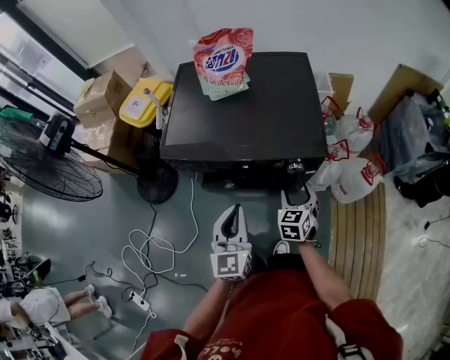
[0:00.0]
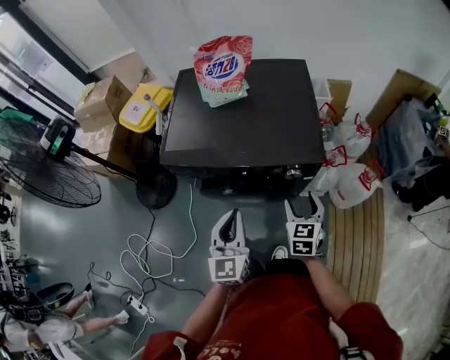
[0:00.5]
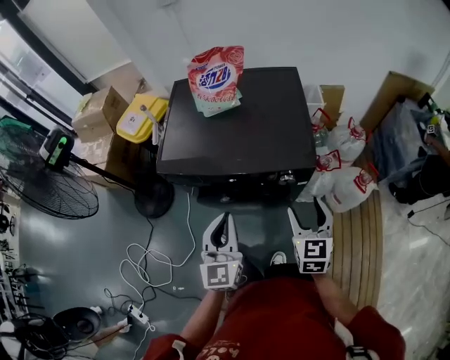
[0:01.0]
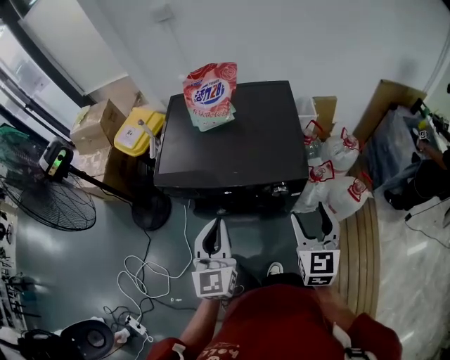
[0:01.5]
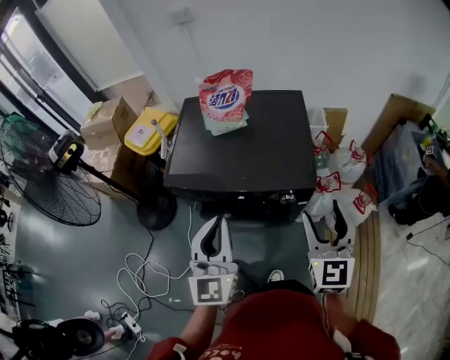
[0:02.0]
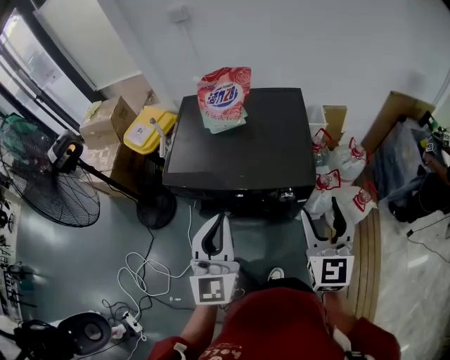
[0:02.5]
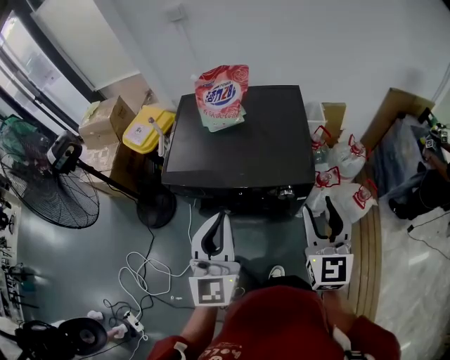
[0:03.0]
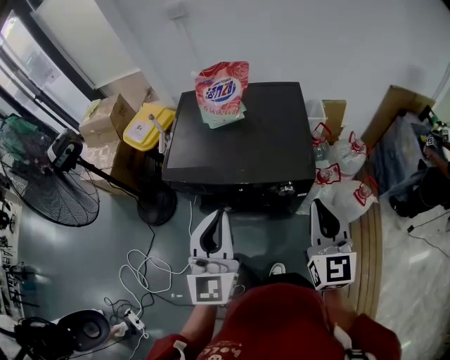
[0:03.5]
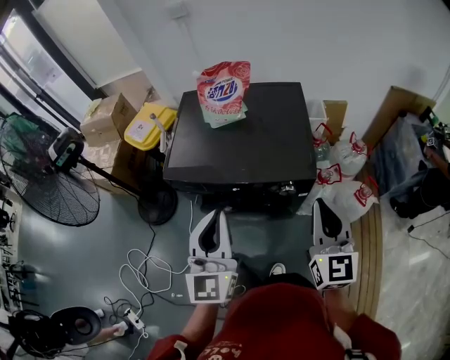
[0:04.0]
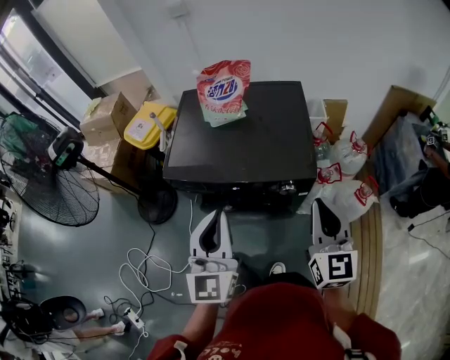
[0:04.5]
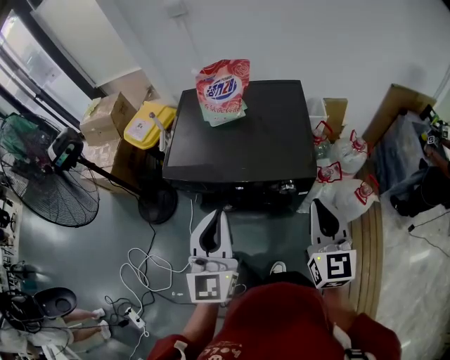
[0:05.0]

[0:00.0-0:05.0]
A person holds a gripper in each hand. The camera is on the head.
0:00.0 to 0:02.5: The left gripper travels upward by some 15 cm, while the right gripper goes approximately 30 cm upward, and swivels roughly 30 degrees.
0:02.5 to 0:05.0: The right gripper closes up.

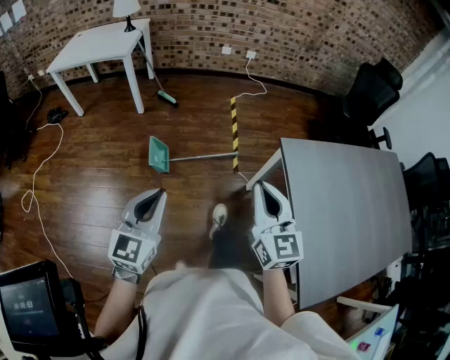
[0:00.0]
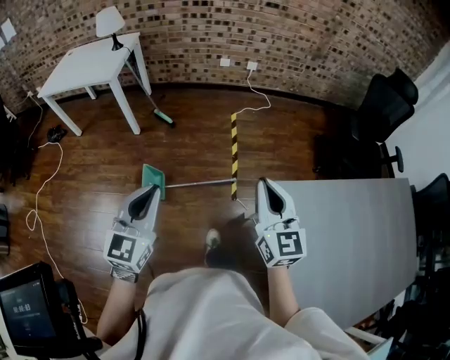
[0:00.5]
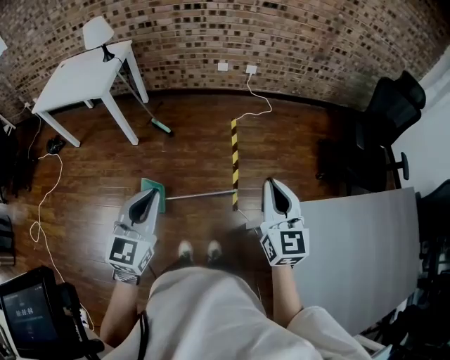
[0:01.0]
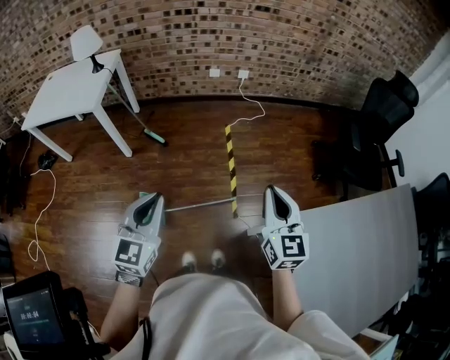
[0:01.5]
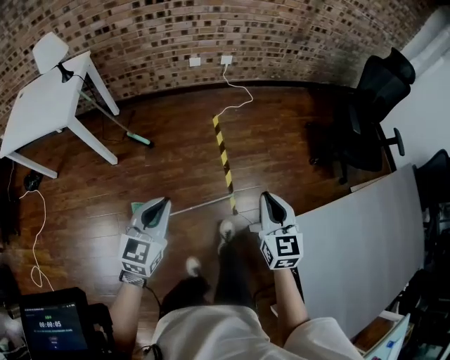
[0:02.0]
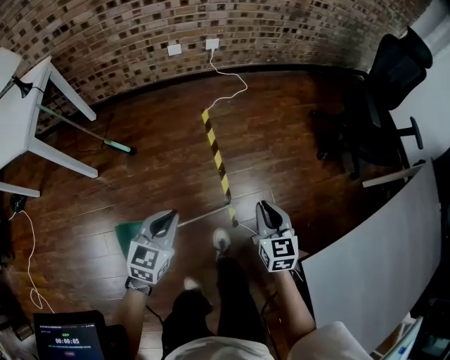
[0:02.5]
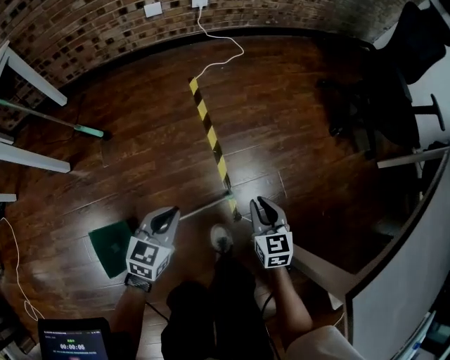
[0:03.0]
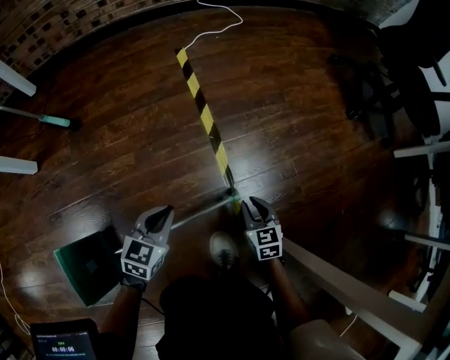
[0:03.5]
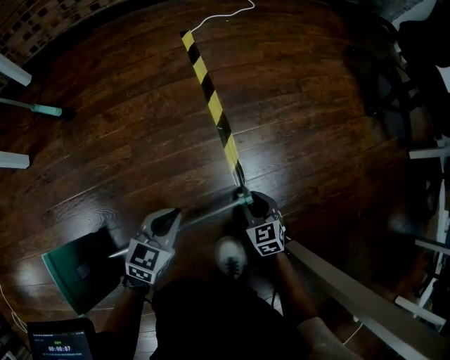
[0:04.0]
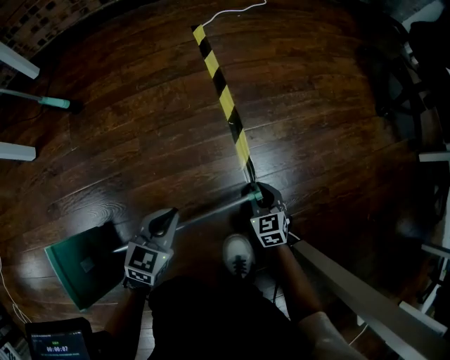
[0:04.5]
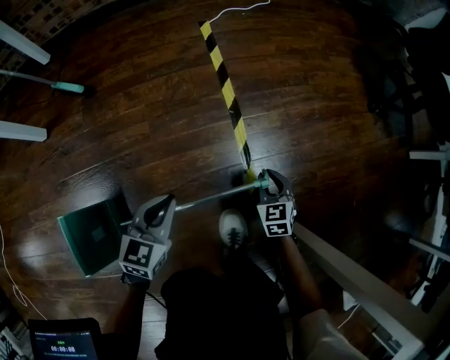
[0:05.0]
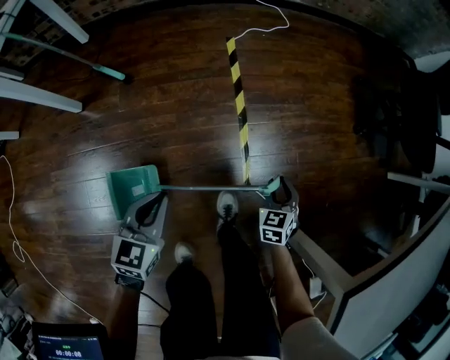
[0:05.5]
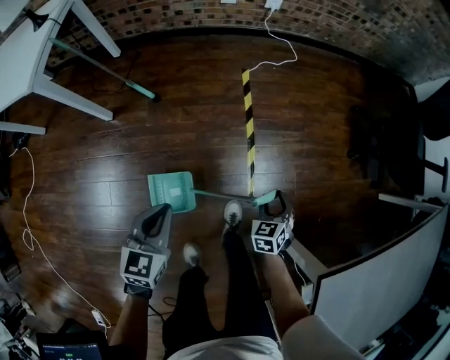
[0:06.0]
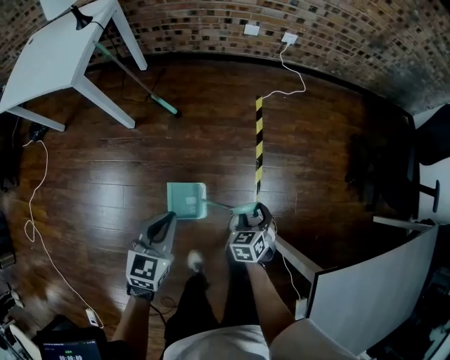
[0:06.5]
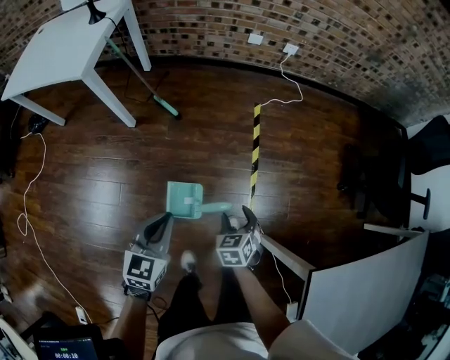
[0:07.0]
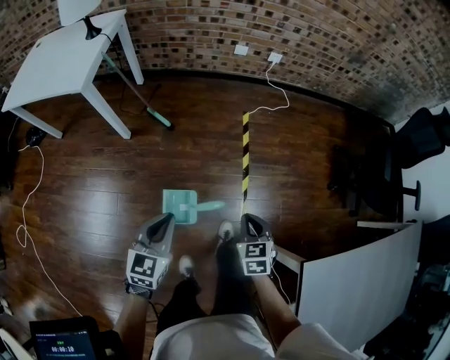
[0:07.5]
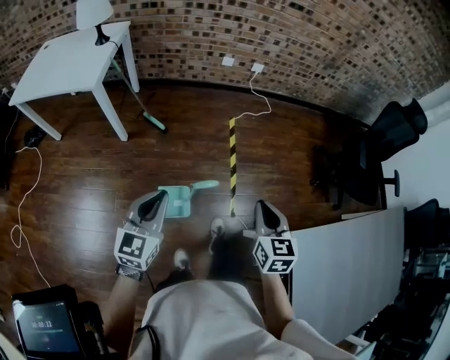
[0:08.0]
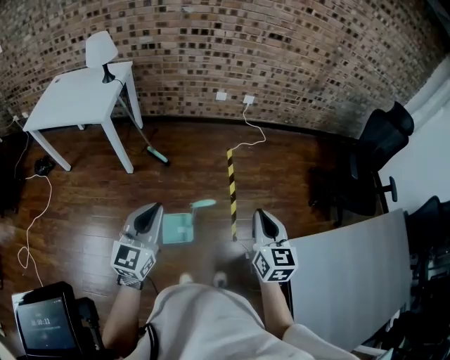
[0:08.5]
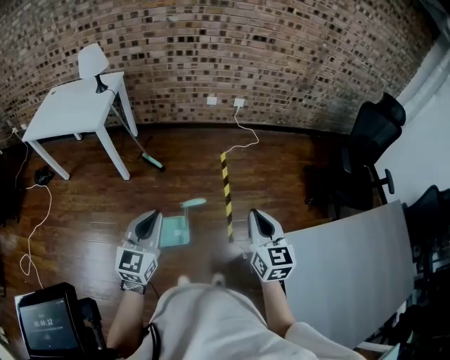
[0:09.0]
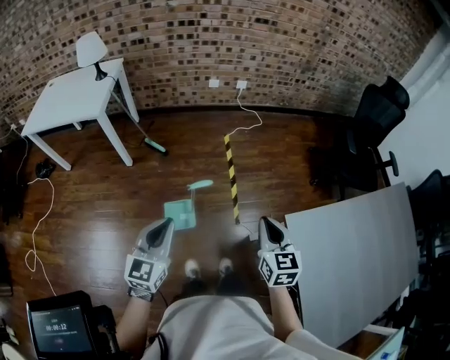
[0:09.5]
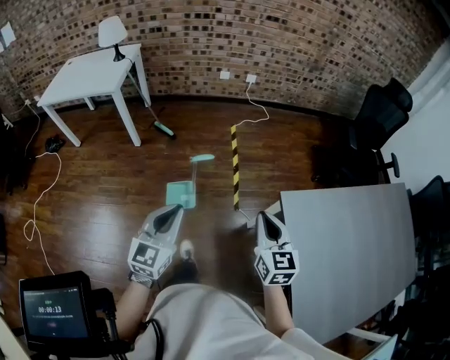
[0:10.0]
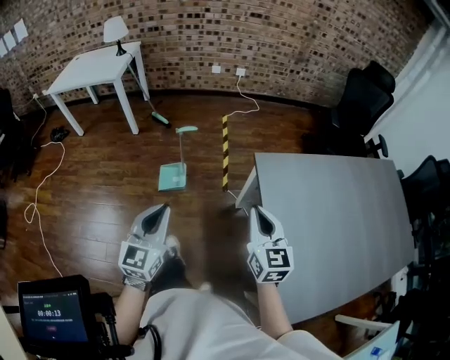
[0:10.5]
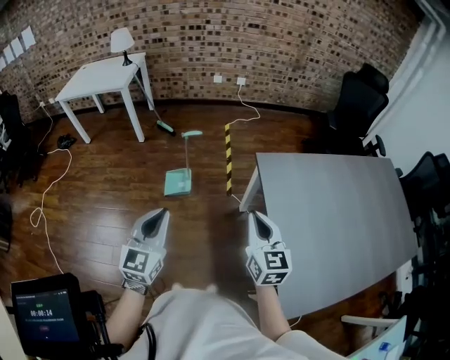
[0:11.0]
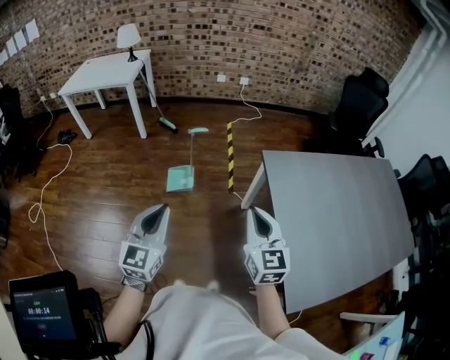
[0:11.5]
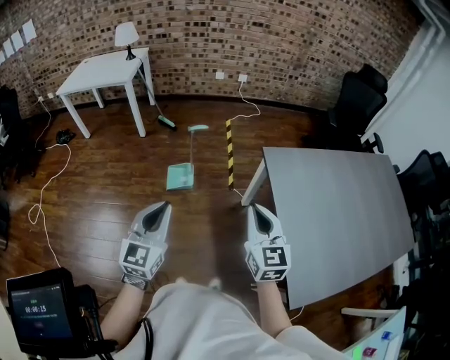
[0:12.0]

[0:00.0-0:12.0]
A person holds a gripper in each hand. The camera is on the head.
0:00.0 to 0:02.0: The two grippers travel together, forward, about 50 cm.
0:02.0 to 0:04.0: Both grippers travel together downward, approximately 80 cm. The left gripper rotates roughly 20 degrees; the right gripper changes its angle by some 30 degrees.
0:04.0 to 0:06.0: Both grippers move upward, roughly 50 cm. The left gripper turns by approximately 30 degrees.
0:06.0 to 0:08.0: The left gripper is displaced upward and backward by about 30 cm, and changes its angle by roughly 20 degrees; the right gripper is displaced upward by some 40 cm, swivels about 30 degrees, and closes up.
0:08.0 to 0:10.0: The right gripper moves backward, about 25 cm; the left gripper is displaced backward and to the right by about 25 cm.
0:10.0 to 0:12.0: The grippers both shift backward by approximately 30 cm.

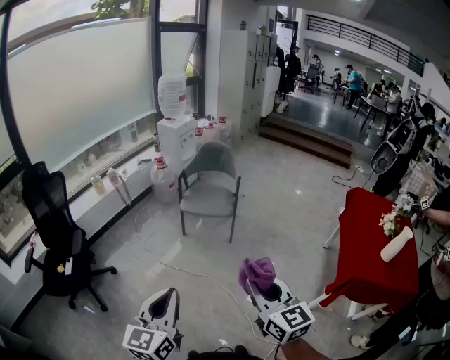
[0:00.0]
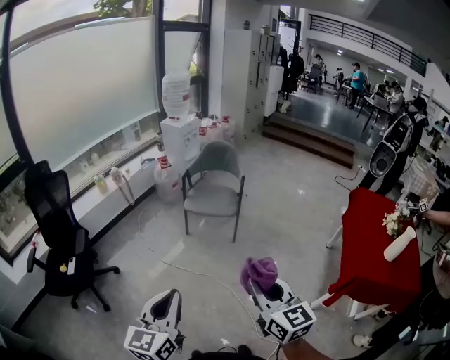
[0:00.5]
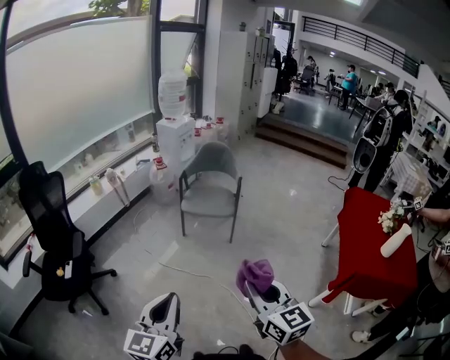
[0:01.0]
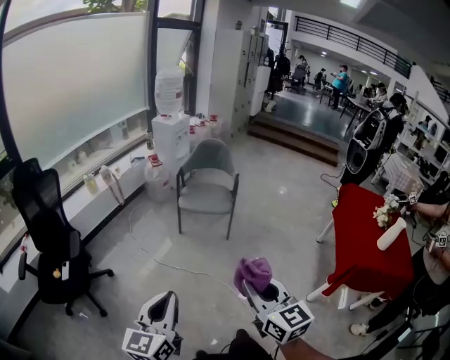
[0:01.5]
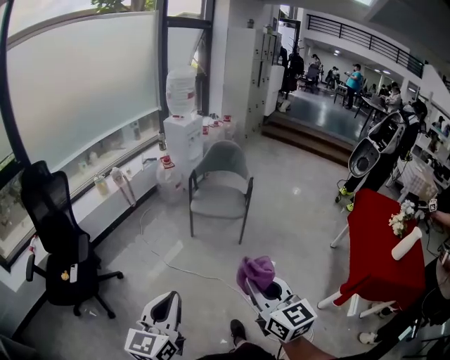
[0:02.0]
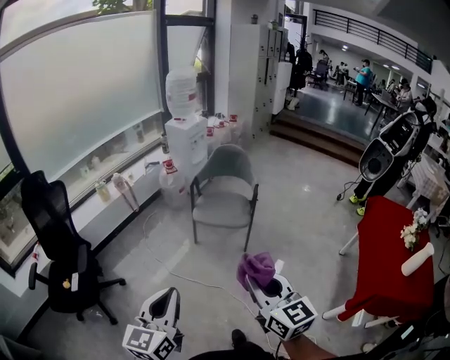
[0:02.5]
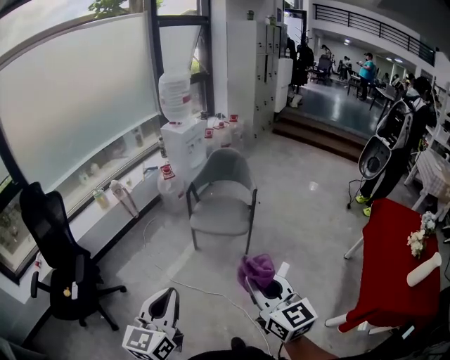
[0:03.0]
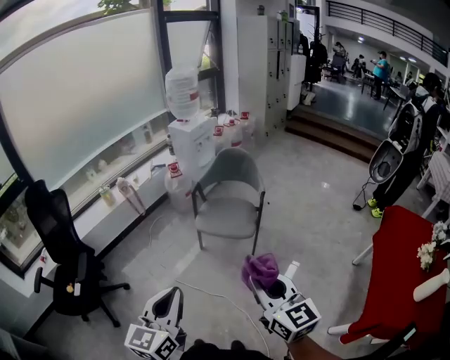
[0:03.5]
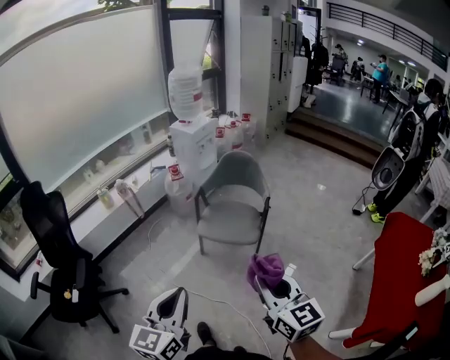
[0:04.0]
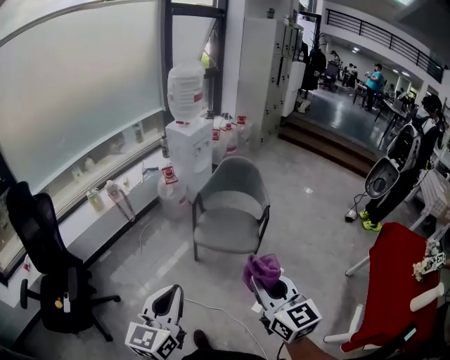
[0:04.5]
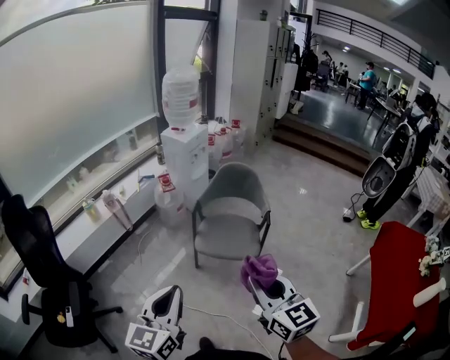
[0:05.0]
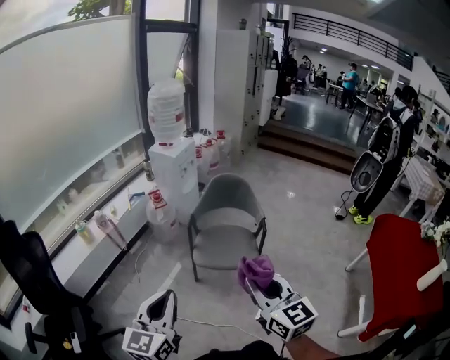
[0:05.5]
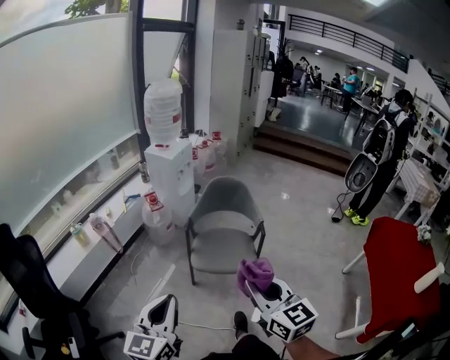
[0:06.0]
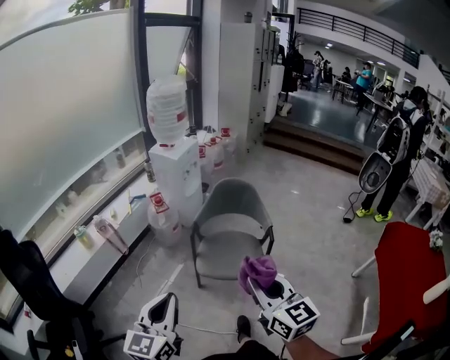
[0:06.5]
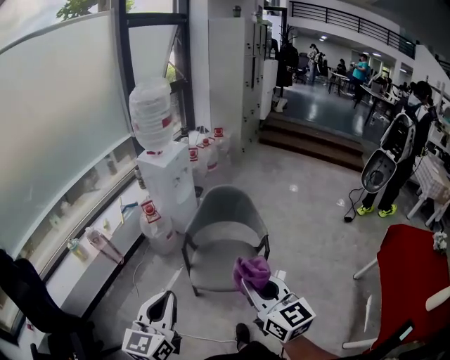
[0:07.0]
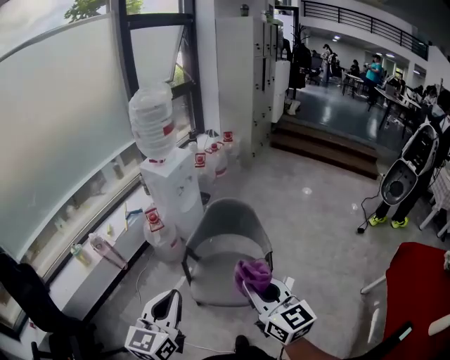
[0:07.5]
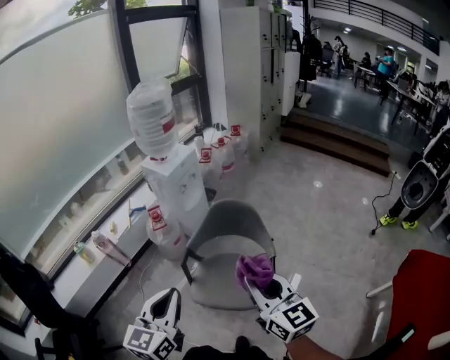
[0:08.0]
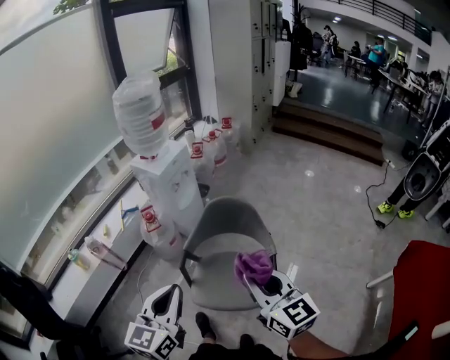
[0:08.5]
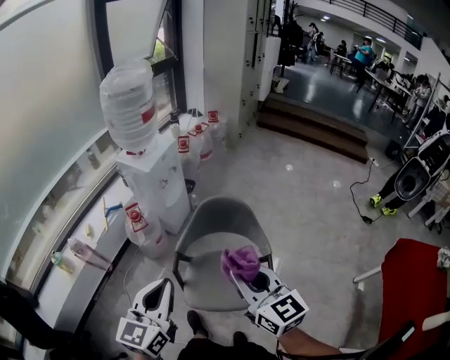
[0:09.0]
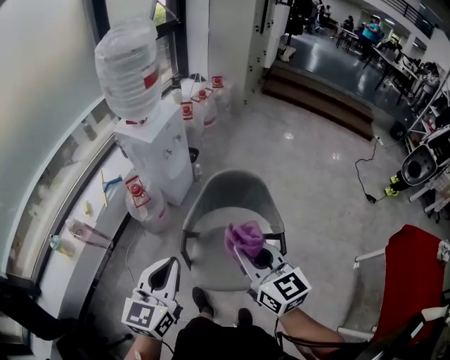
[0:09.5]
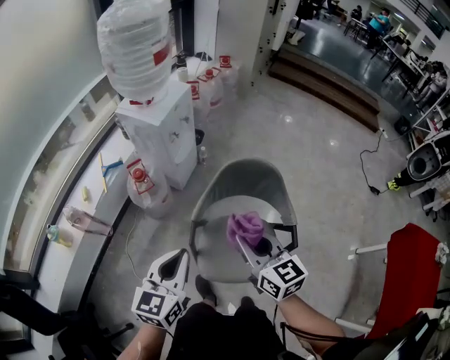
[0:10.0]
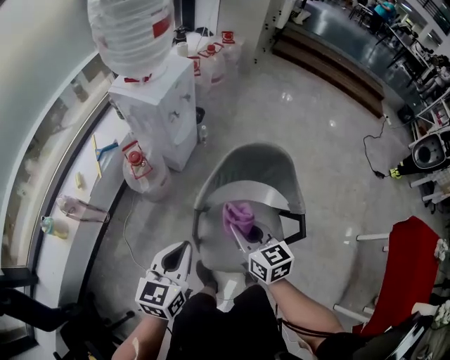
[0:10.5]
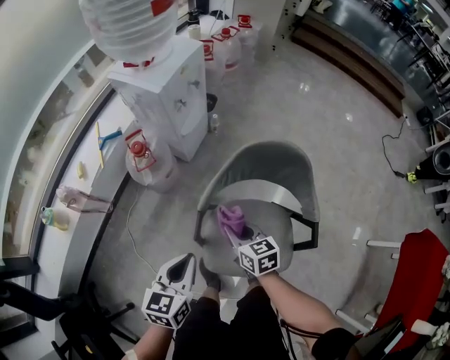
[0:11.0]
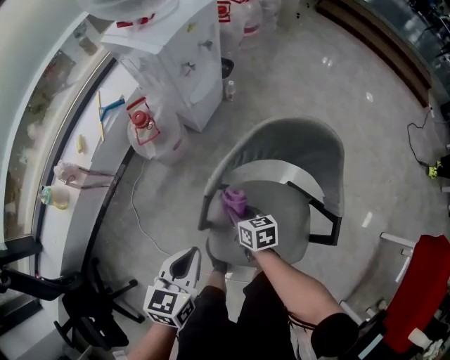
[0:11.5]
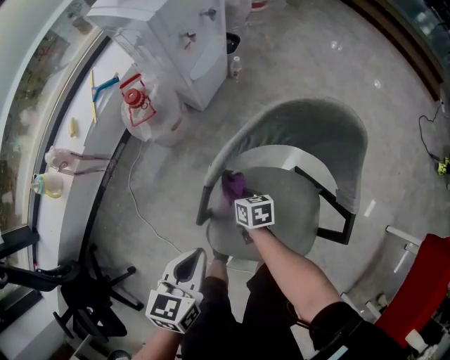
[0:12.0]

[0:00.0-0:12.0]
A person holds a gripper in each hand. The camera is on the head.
0:00.0 to 0:02.0: Both grippers travel together to the left, roughly 10 cm.
0:02.0 to 0:04.0: The grippers both shift forward and to the right by roughly 30 cm.
0:04.0 to 0:06.0: The grippers both shift forward and to the left by some 20 cm.
0:06.0 to 0:08.0: The grippers both shift forward and to the right by roughly 35 cm.
0:08.0 to 0:10.0: The right gripper heads forward, to the left and downward, covering approximately 30 cm. Meanwhile the left gripper shifts roughly 30 cm forward, downward and to the left.
0:10.0 to 0:12.0: The right gripper travels downward by approximately 50 cm, and tips its fingers downward by some 30 degrees. The left gripper is displaced downward by approximately 25 cm, and swivels some 30 degrees.
